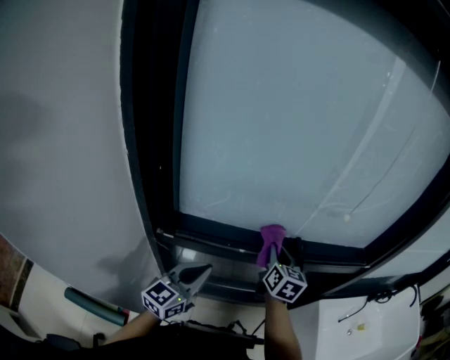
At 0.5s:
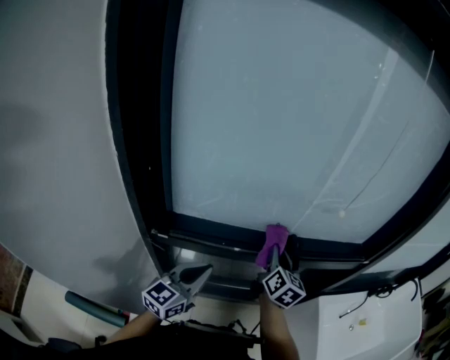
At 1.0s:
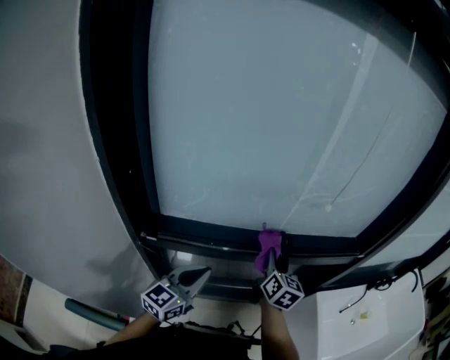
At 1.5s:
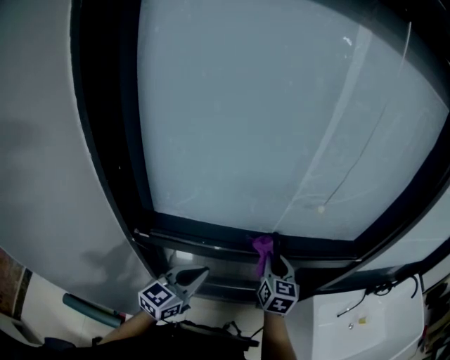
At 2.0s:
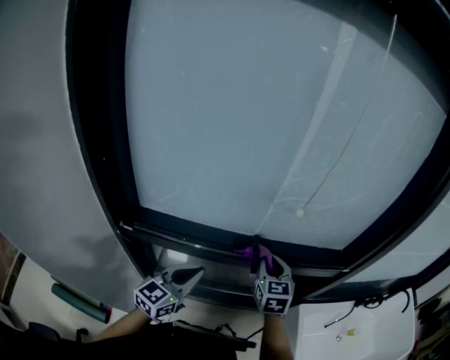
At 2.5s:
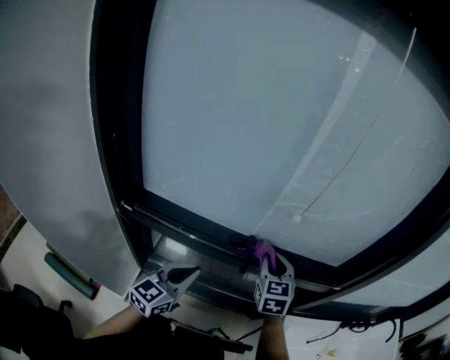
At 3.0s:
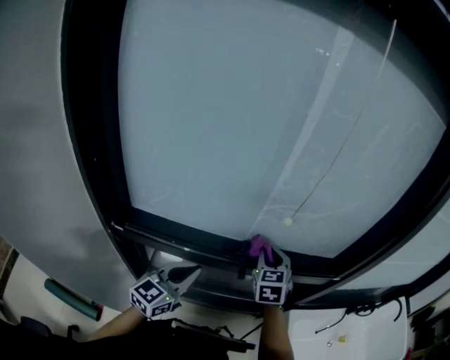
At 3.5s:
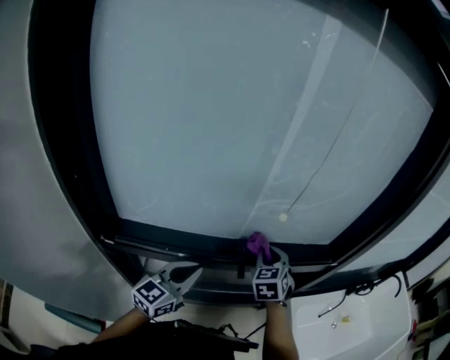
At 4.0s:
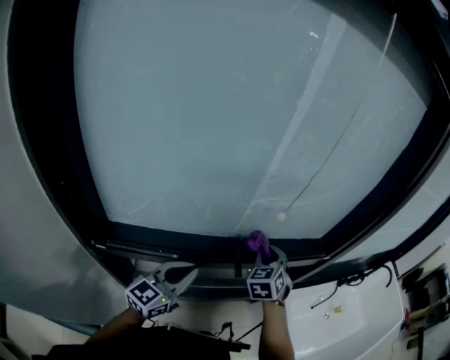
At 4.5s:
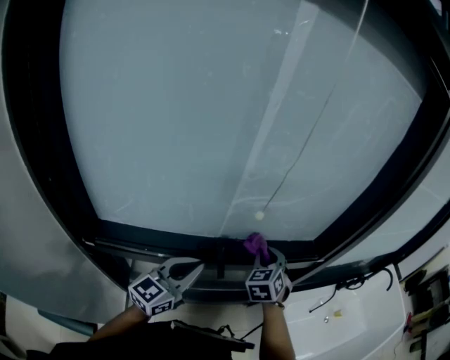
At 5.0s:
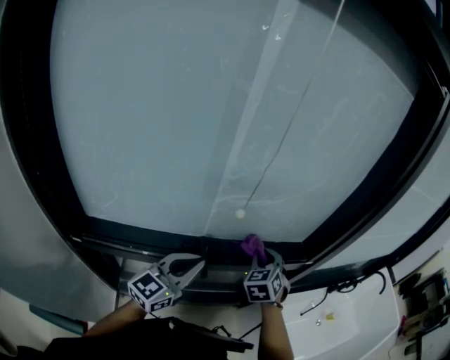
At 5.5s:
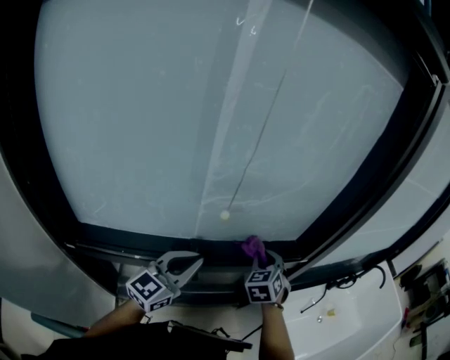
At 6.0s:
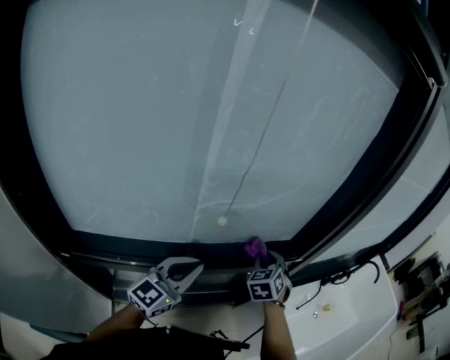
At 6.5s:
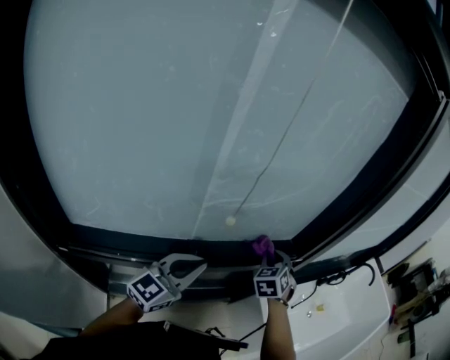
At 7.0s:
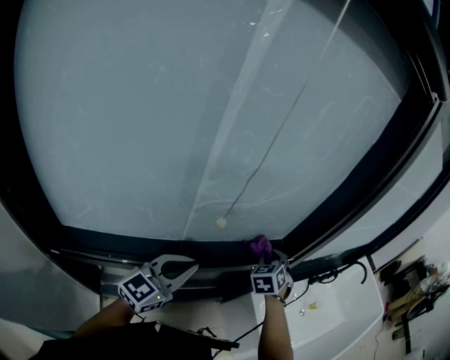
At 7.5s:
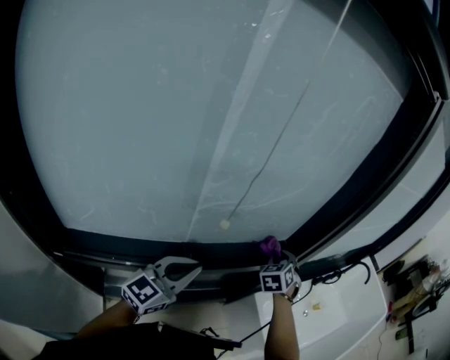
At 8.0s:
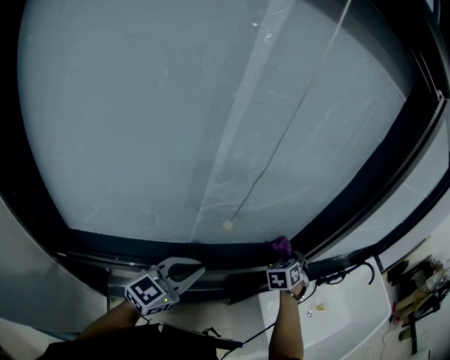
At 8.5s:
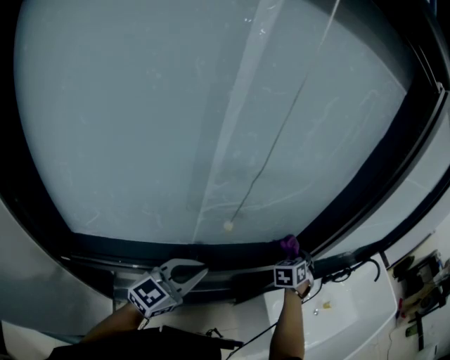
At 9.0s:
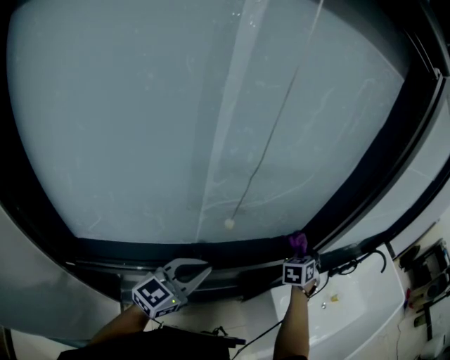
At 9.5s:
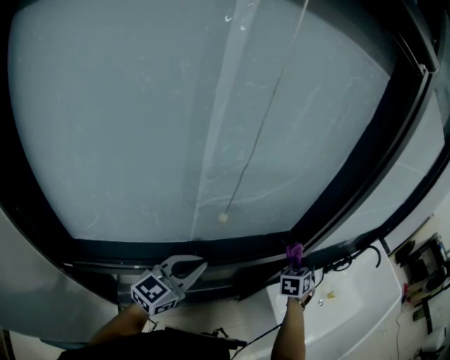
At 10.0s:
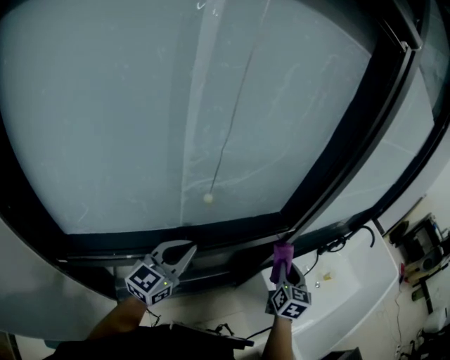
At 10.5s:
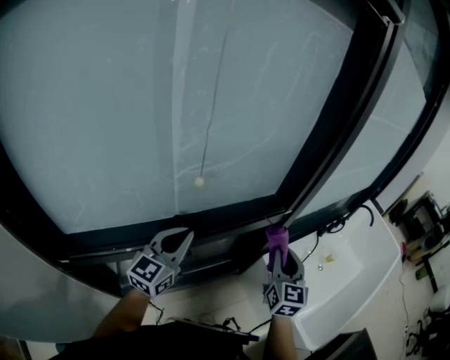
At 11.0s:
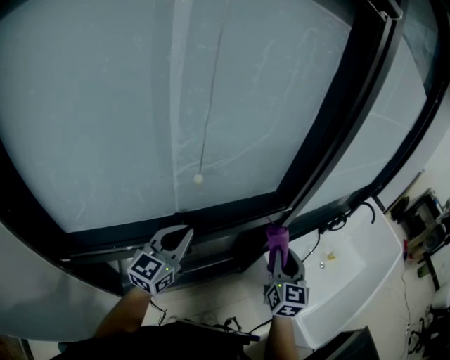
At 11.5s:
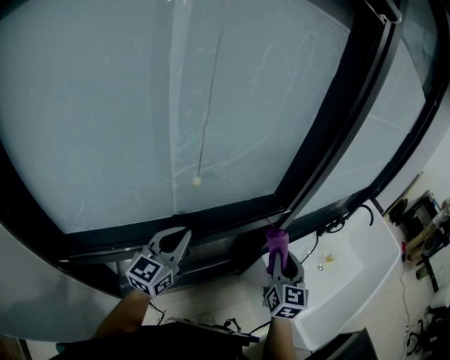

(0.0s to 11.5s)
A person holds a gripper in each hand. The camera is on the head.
0.0s - 2.0s: Both grippers move to the right, about 10 cm. The right gripper turns by some 20 degrees.
2.0s - 4.0s: The left gripper ends up roughly 5 cm from where it was; the right gripper moves forward, some 5 cm, and swivels roughly 30 degrees.
4.0s - 6.0s: Both grippers travel together to the right and forward, approximately 15 cm.
6.0s - 7.5s: The right gripper moves forward and to the right, about 10 cm.
7.5s - 9.5s: The right gripper heads to the right, covering some 10 cm.
9.5s - 11.5s: The right gripper is displaced backward by about 15 cm, and changes its angle by roughly 40 degrees.

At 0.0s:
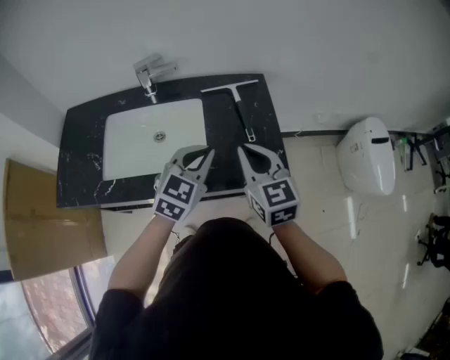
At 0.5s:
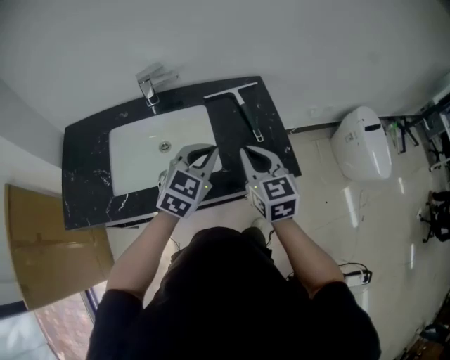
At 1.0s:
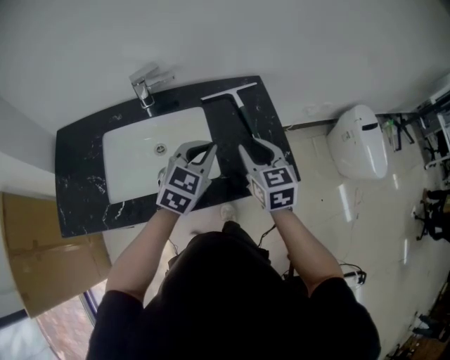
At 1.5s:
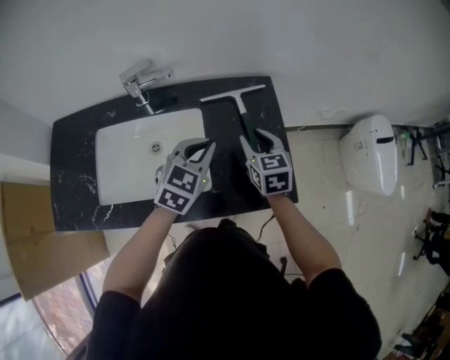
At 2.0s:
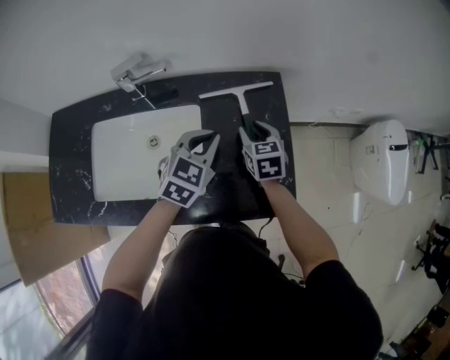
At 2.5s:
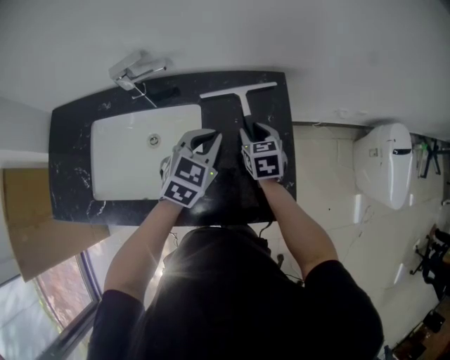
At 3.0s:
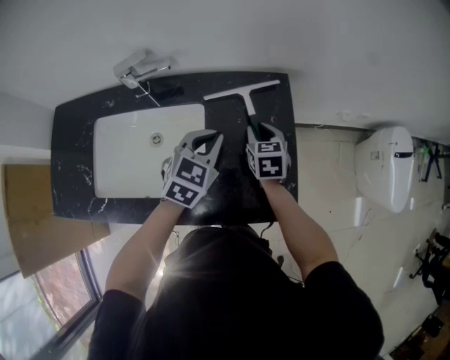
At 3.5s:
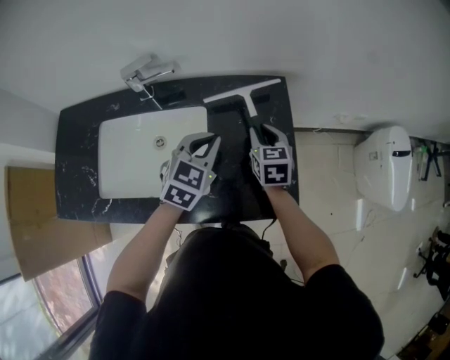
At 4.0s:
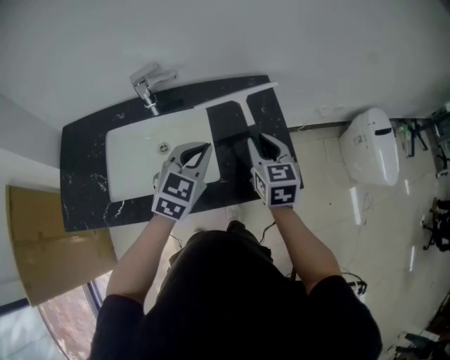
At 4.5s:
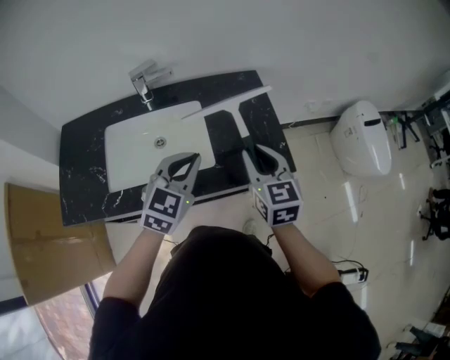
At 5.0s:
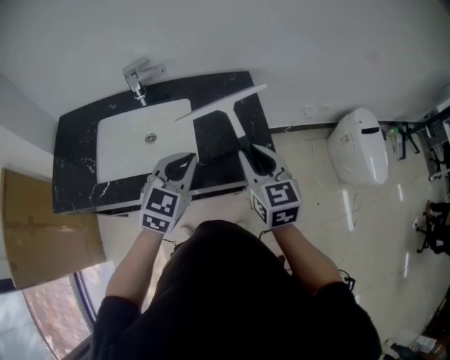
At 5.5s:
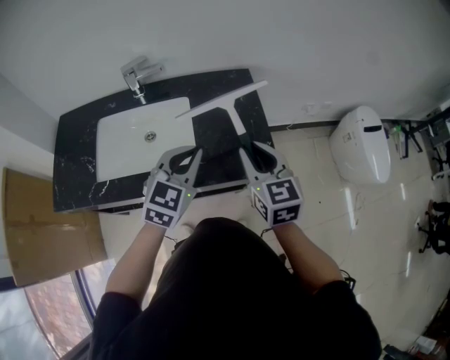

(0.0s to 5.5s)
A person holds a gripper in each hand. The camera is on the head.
0.0s - 2.0s: The right gripper shifts about 30 cm forward and downward, swivels about 20 degrees, and opens. Meanwhile the left gripper is displaced forward and downward by approximately 20 cm.
2.0s - 3.5s: The grippers make only small movements.
3.5s - 5.5s: Both grippers travel together backward and upward, roughly 25 cm.

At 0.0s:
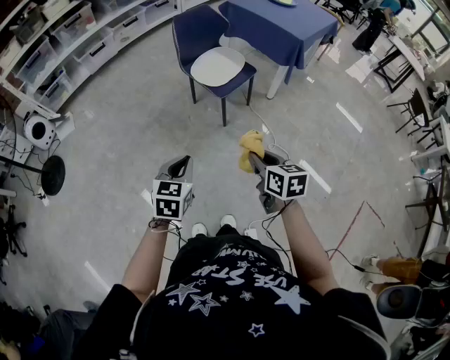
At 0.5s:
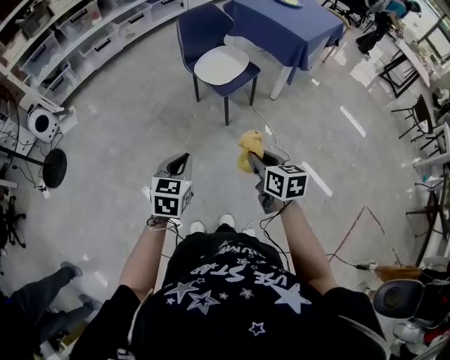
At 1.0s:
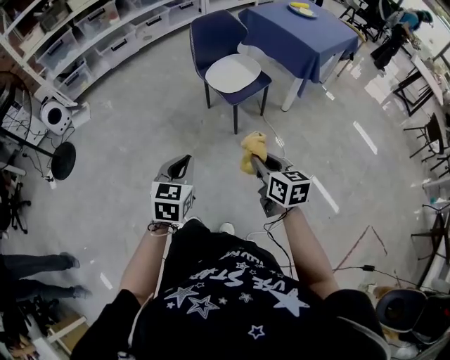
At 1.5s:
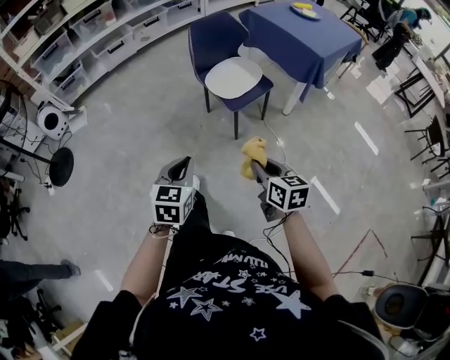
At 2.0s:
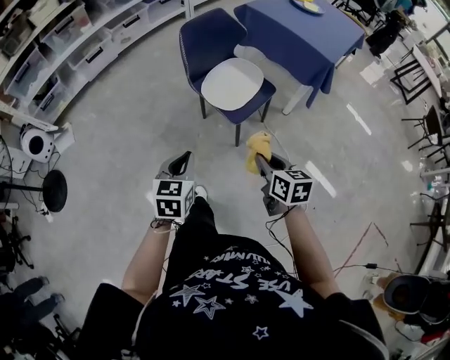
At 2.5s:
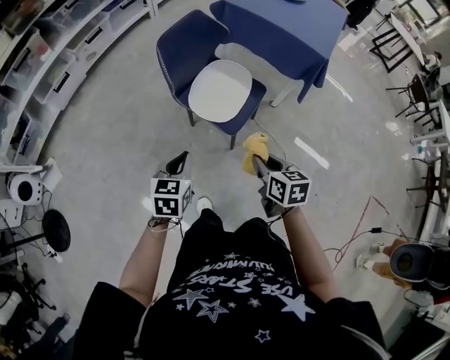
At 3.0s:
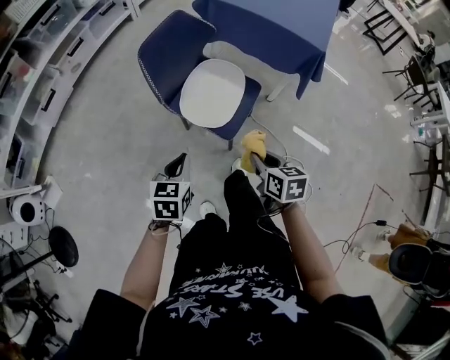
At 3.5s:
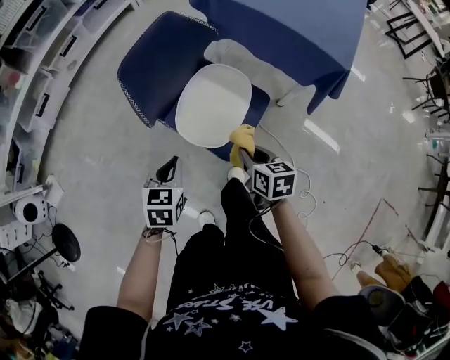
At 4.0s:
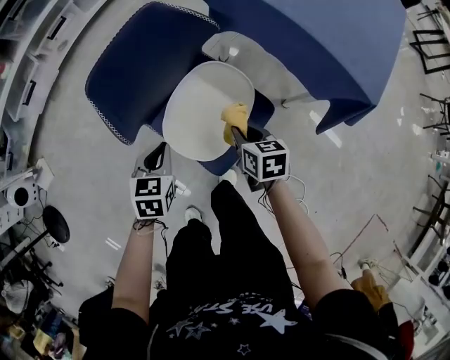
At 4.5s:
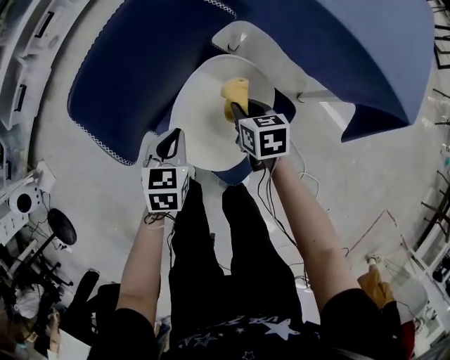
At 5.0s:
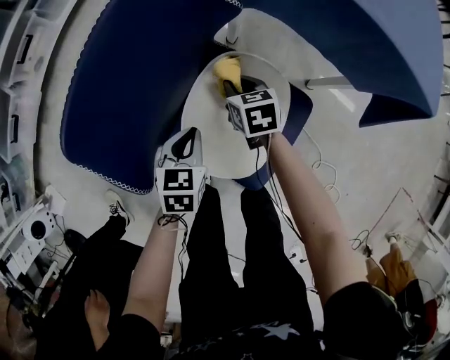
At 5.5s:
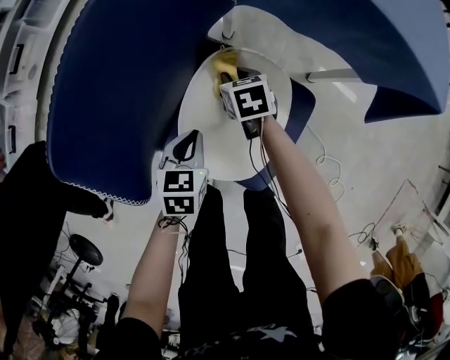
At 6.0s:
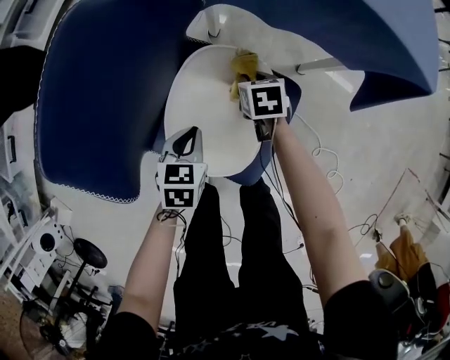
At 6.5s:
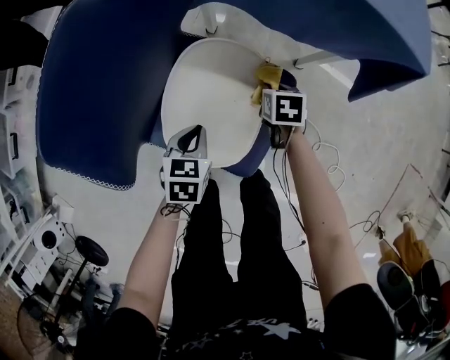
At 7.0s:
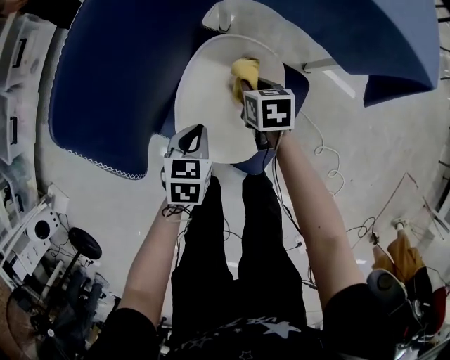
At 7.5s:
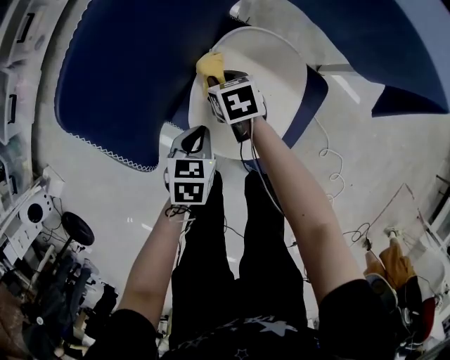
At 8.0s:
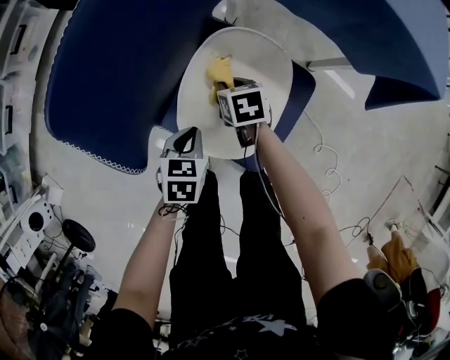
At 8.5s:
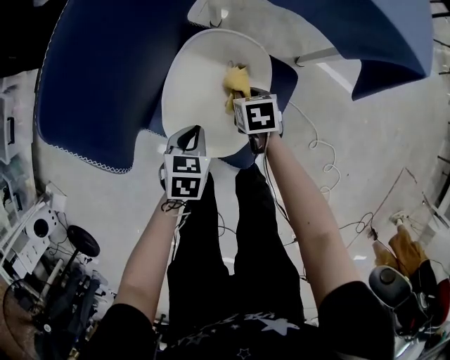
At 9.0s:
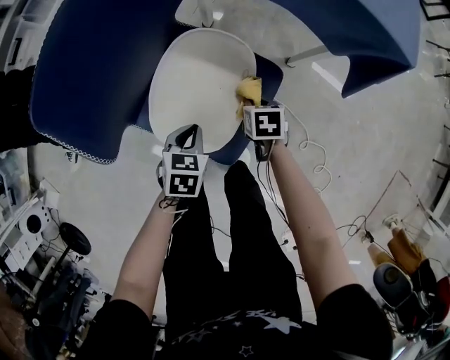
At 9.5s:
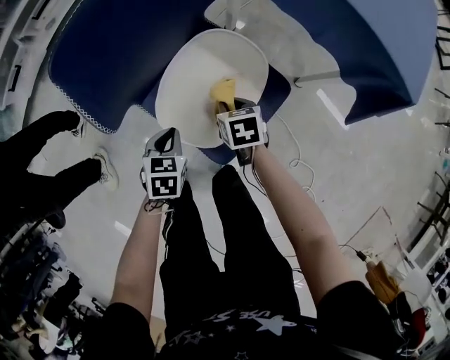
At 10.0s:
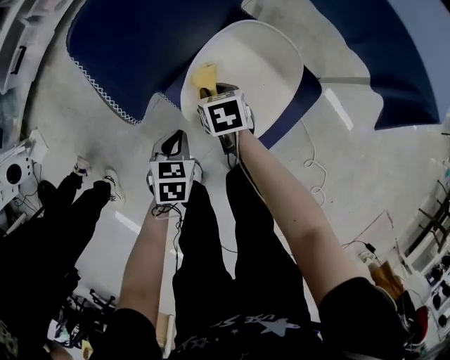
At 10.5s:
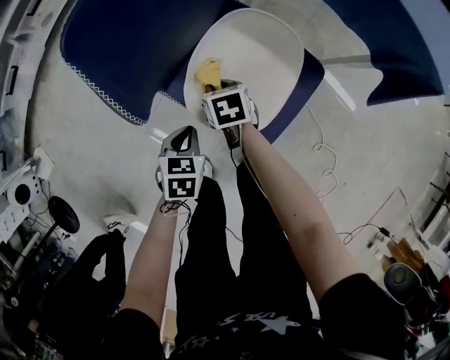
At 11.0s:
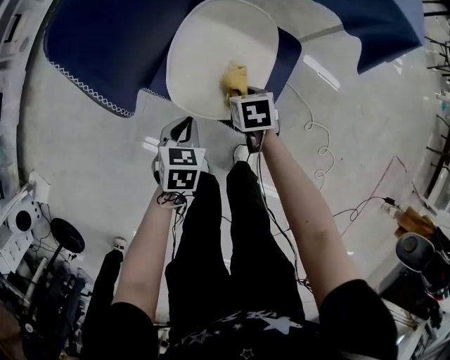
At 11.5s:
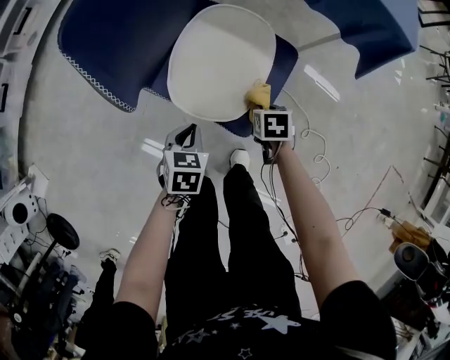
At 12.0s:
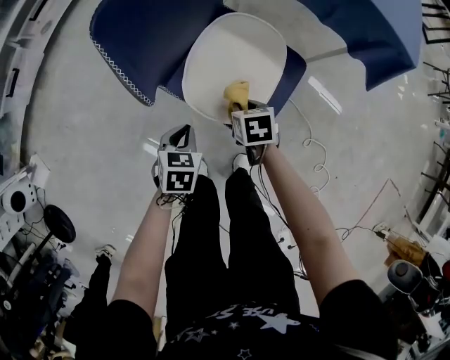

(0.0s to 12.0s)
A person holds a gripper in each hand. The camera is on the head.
0.0s - 2.0s: The two grippers go about 25 cm forward.
2.0s - 4.0s: The two grippers travel together, forward, roughly 50 cm. The right gripper is displaced downward by about 20 cm.
4.0s - 6.0s: Both grippers travel together downward, roughly 15 cm. The right gripper swivels about 20 degrees; the left gripper rotates roughly 20 degrees.
6.0s - 8.0s: The left gripper travels backward and to the left by some 10 cm. The right gripper moves left and right over roughly 25 cm, changing direction 2 times.
8.0s - 10.0s: The left gripper shifts by approximately 10 cm.
